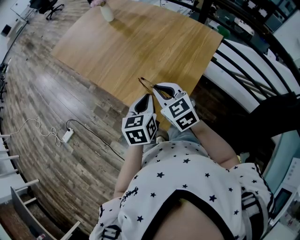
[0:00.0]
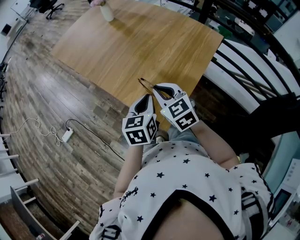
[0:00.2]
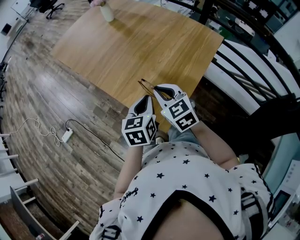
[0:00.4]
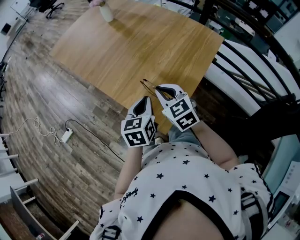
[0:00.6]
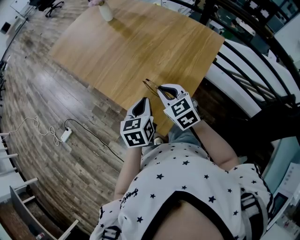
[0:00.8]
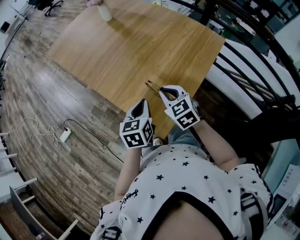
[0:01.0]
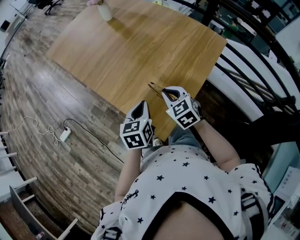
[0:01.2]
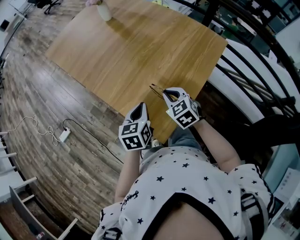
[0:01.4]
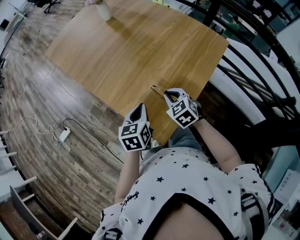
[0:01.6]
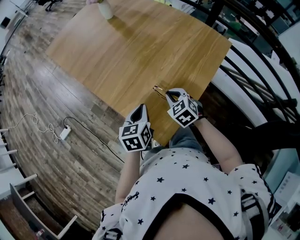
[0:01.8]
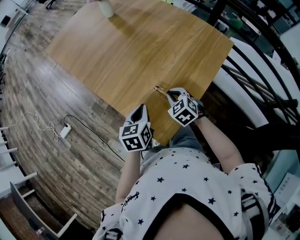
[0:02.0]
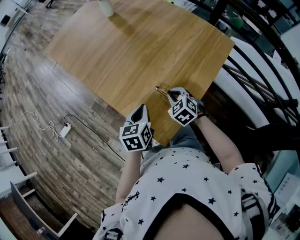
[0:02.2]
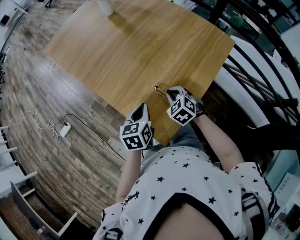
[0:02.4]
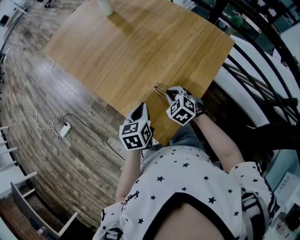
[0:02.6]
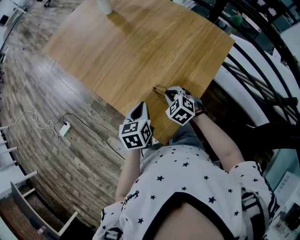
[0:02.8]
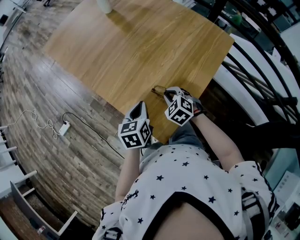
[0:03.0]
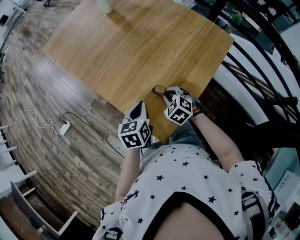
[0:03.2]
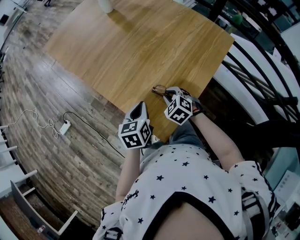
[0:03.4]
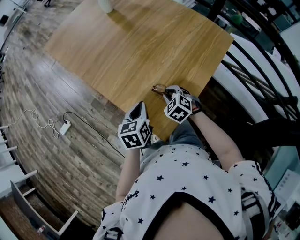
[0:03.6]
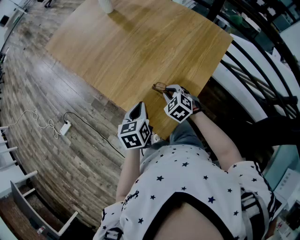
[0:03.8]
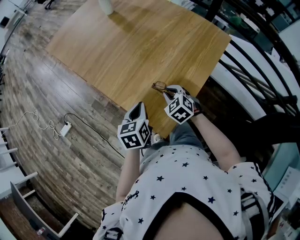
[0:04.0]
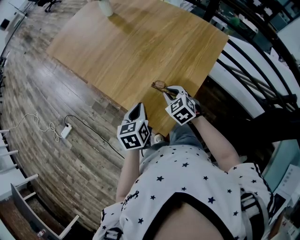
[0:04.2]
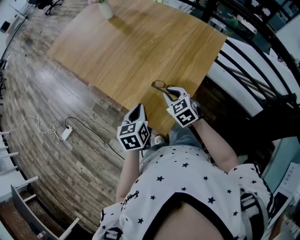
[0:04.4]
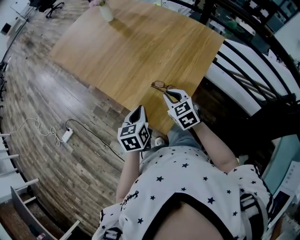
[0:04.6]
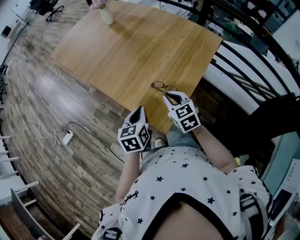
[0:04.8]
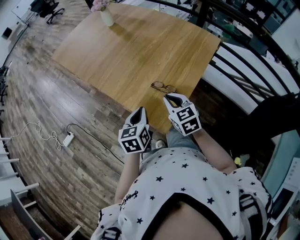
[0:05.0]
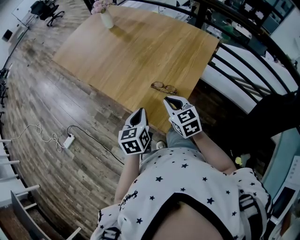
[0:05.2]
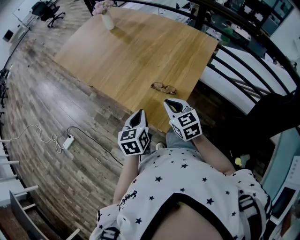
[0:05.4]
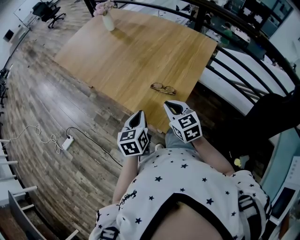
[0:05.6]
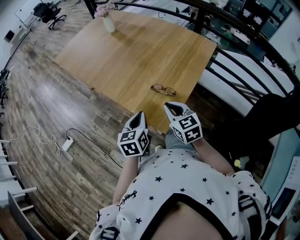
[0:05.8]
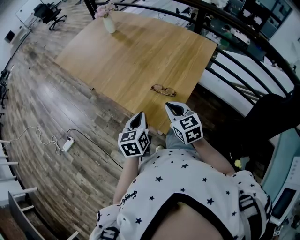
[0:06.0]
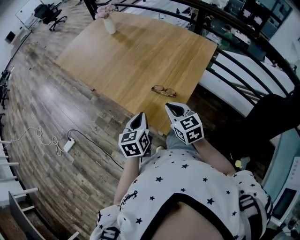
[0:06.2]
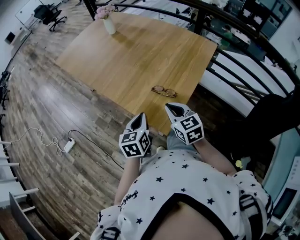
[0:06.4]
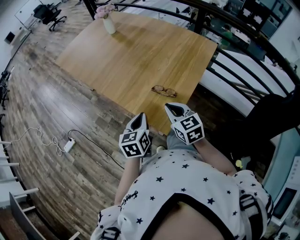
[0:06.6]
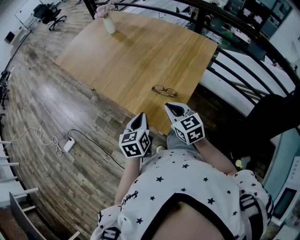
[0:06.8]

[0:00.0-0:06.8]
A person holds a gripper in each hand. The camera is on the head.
0:00.0 to 0:01.4: The left gripper shifts some 5 cm downward. Meanwhile the right gripper heads downward, to the right and forward, covering approximately 10 cm.
0:01.4 to 0:02.8: The right gripper moves downward, roughly 5 cm.
0:02.8 to 0:04.0: The grippers move only a little.
0:04.0 to 0:05.4: The left gripper moves backward, about 5 cm, while the right gripper moves upward and backward, some 15 cm, and changes its angle by approximately 30 degrees.
0:05.4 to 0:06.8: There are only small adjustments of the grippers.

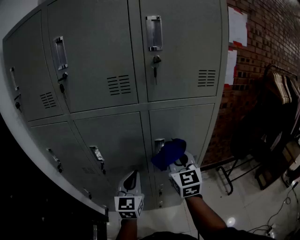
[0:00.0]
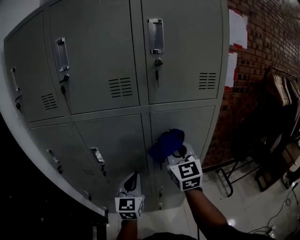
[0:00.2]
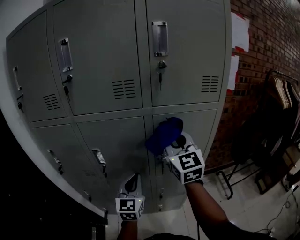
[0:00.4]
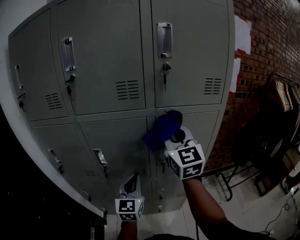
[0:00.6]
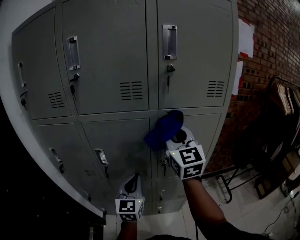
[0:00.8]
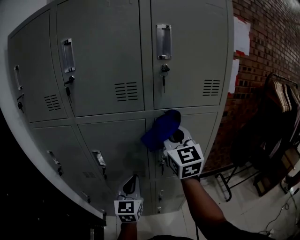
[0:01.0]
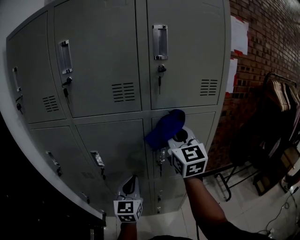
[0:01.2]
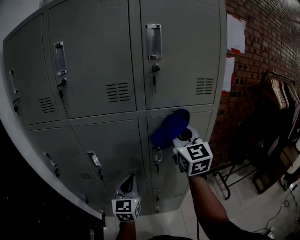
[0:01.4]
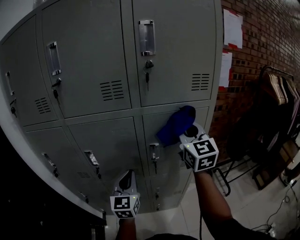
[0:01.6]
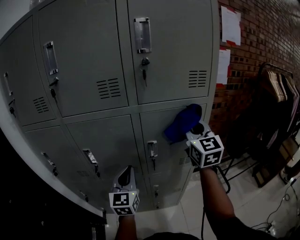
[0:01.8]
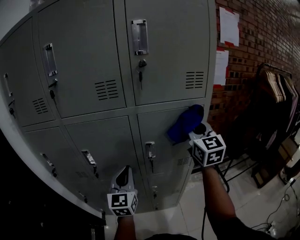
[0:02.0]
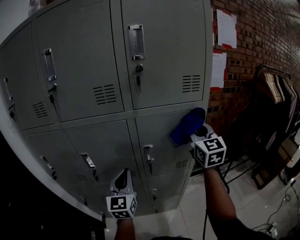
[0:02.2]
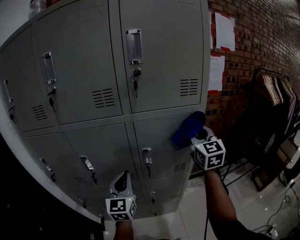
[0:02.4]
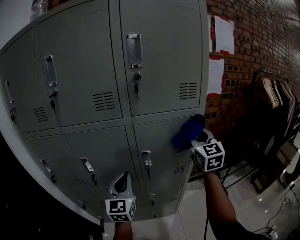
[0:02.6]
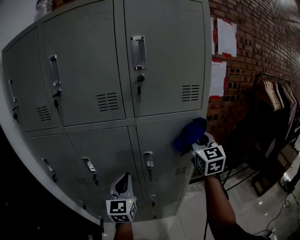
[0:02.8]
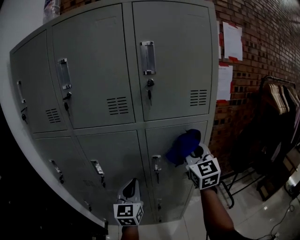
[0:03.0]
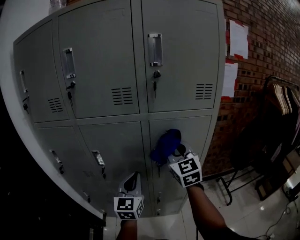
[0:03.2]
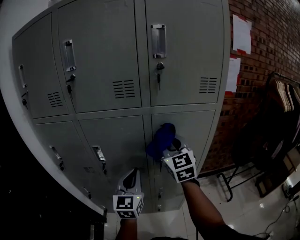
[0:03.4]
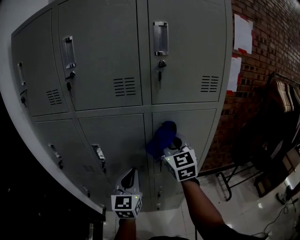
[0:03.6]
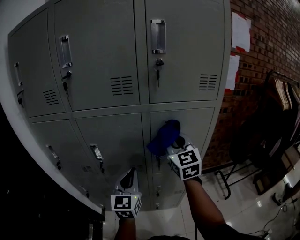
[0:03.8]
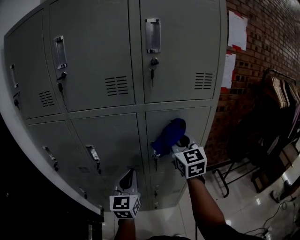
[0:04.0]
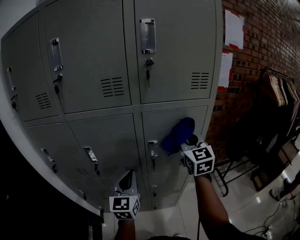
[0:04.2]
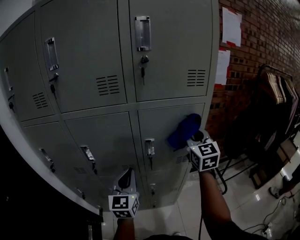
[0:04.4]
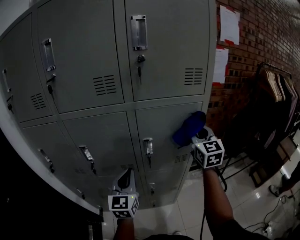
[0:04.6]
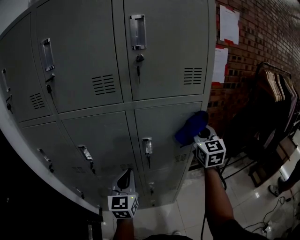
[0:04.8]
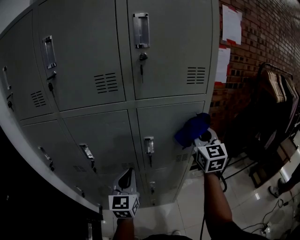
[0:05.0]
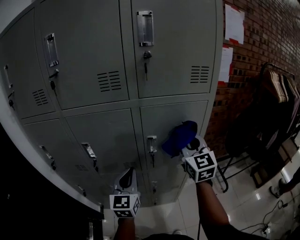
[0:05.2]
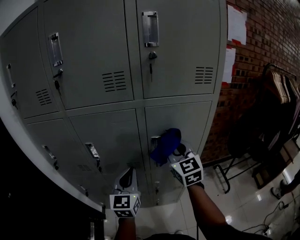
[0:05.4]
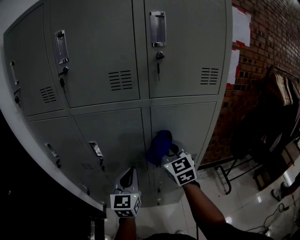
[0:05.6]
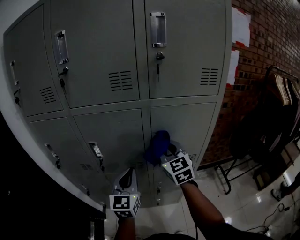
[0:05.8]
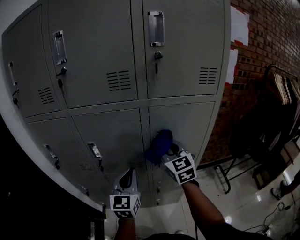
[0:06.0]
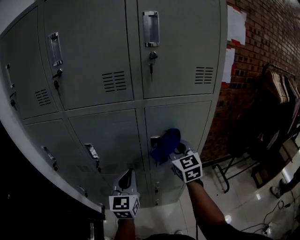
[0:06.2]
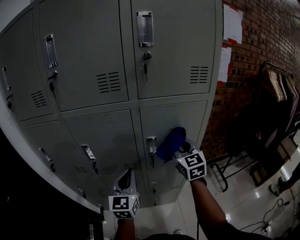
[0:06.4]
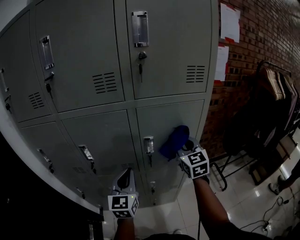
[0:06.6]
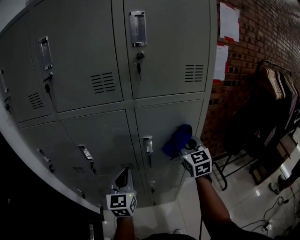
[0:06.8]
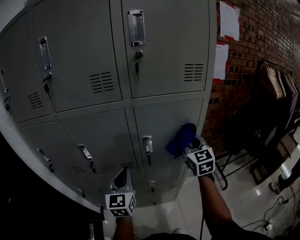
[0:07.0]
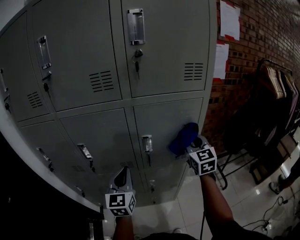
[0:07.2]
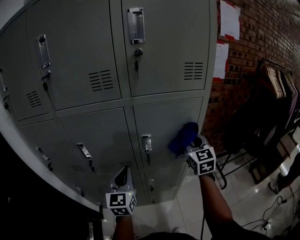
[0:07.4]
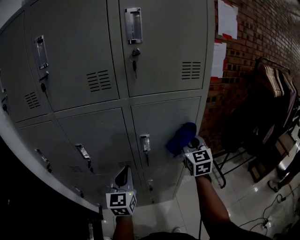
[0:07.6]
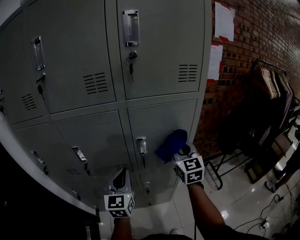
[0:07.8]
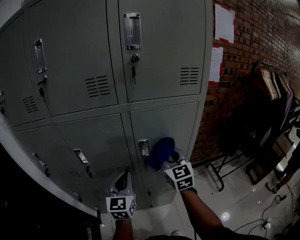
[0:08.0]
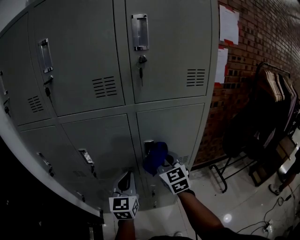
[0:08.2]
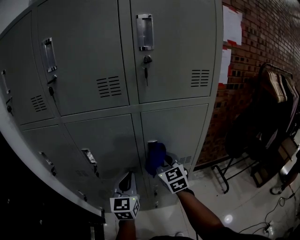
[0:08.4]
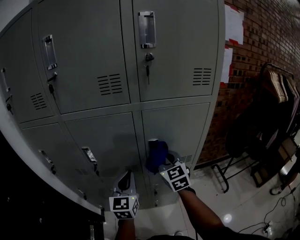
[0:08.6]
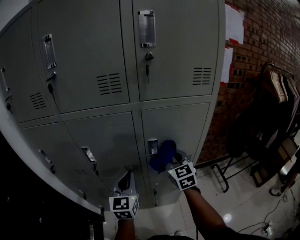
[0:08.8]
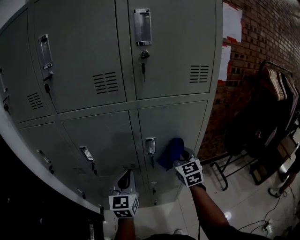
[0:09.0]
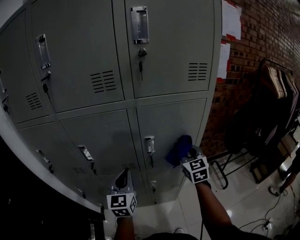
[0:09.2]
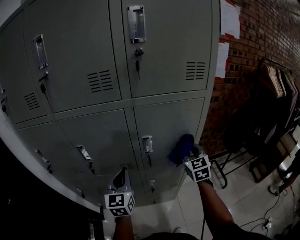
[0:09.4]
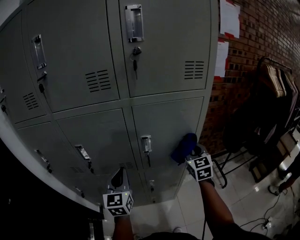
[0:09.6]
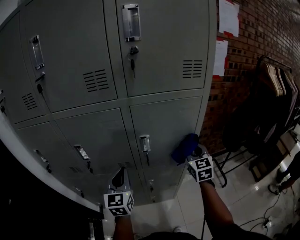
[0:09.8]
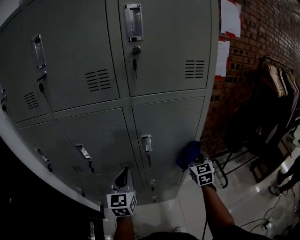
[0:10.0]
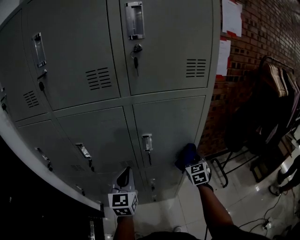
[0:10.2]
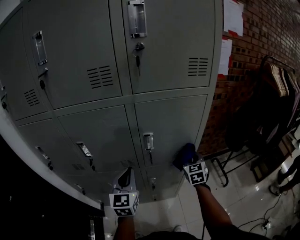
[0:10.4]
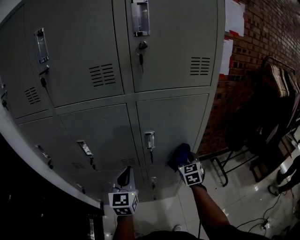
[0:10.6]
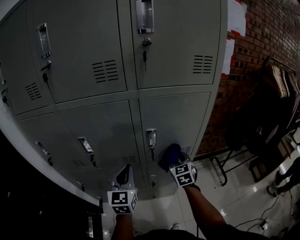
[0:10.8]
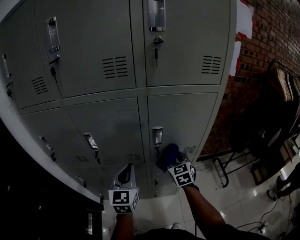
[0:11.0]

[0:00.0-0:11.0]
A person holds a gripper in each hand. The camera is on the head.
0:00.0 to 0:01.6: The right gripper is displaced upward and to the right by some 15 cm.
0:01.6 to 0:03.2: The right gripper moves to the left and downward, roughly 10 cm.
0:03.2 to 0:04.8: The right gripper travels to the right by about 15 cm.
0:04.8 to 0:06.2: The right gripper moves to the left and downward, some 15 cm.
0:06.2 to 0:07.8: The right gripper travels to the right by about 10 cm.
0:07.8 to 0:09.4: The right gripper goes approximately 5 cm downward, and moves approximately 15 cm to the left and comes back.
0:09.4 to 0:11.0: The right gripper is displaced to the left and downward by roughly 15 cm.

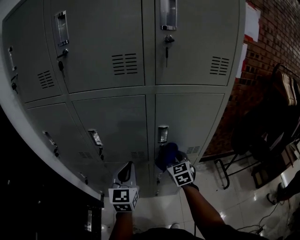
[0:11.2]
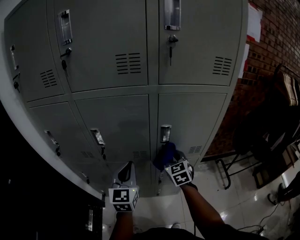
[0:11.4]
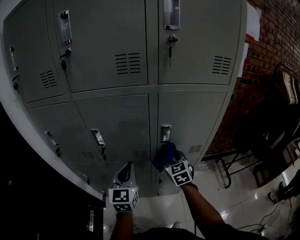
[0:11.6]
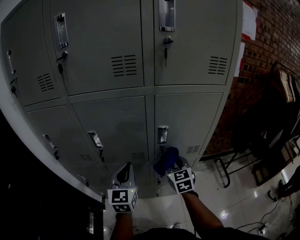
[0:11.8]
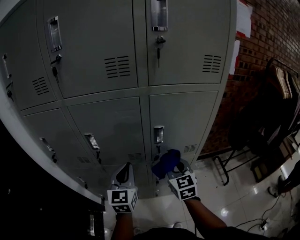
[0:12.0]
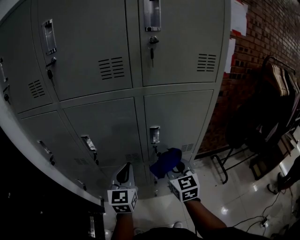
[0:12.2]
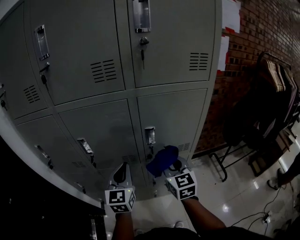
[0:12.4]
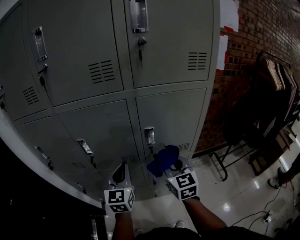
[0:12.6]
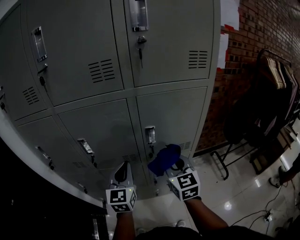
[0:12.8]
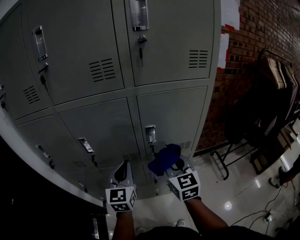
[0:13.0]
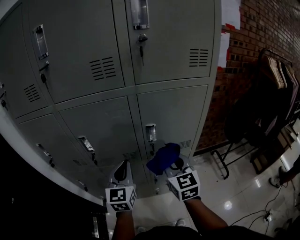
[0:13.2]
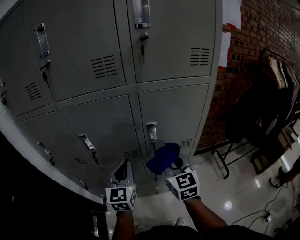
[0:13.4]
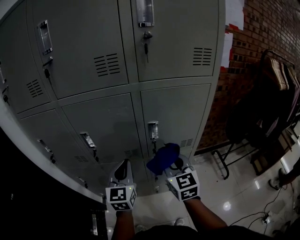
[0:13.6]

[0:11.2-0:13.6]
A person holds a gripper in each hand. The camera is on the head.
0:11.2 to 0:12.4: The right gripper moves upward and backward, approximately 10 cm.
0:12.4 to 0:13.6: There are only small adjustments of the grippers.

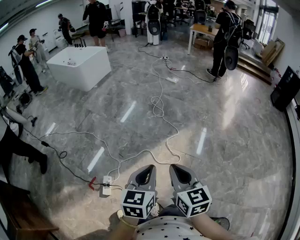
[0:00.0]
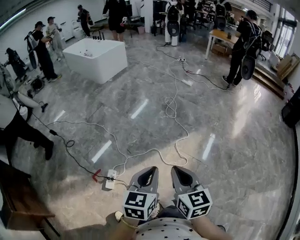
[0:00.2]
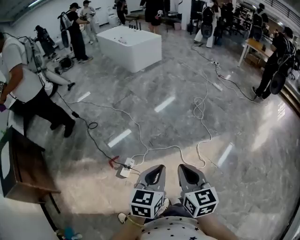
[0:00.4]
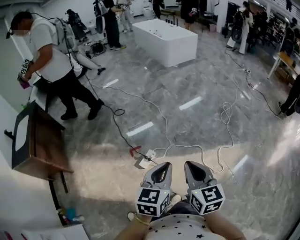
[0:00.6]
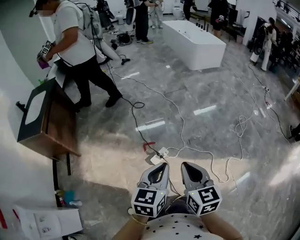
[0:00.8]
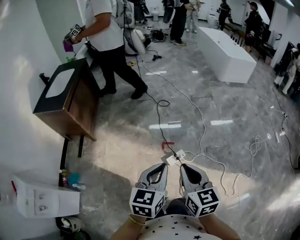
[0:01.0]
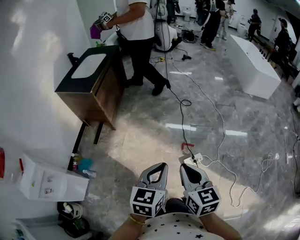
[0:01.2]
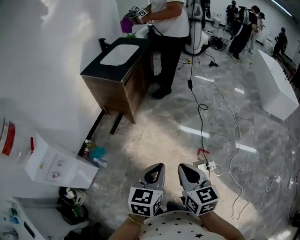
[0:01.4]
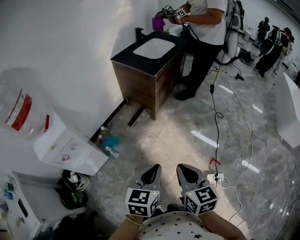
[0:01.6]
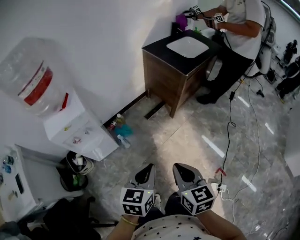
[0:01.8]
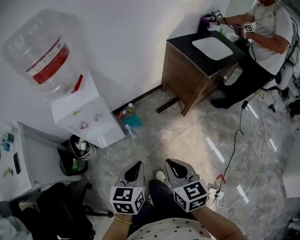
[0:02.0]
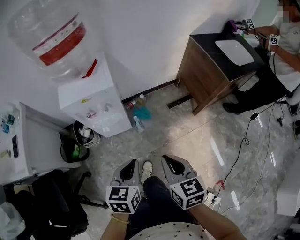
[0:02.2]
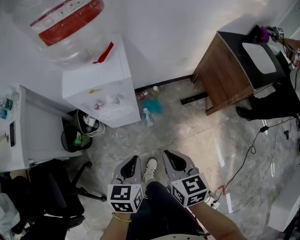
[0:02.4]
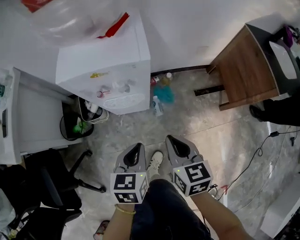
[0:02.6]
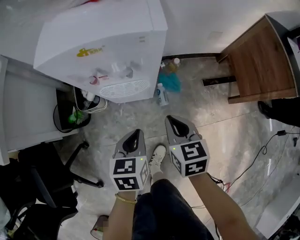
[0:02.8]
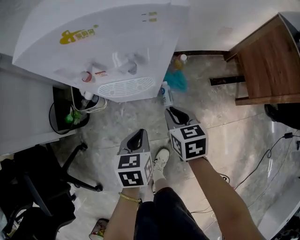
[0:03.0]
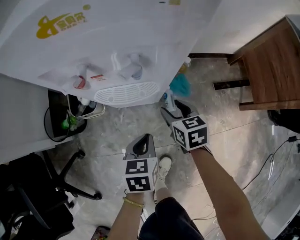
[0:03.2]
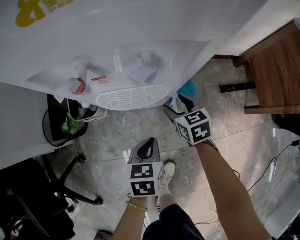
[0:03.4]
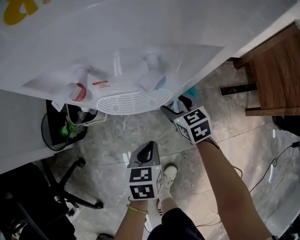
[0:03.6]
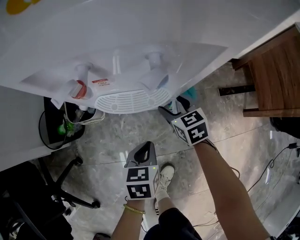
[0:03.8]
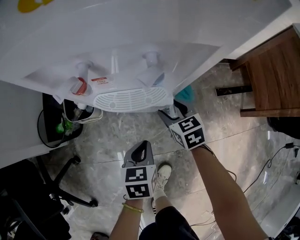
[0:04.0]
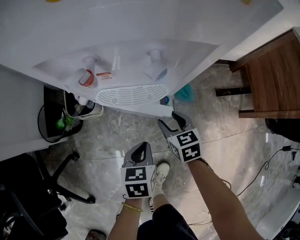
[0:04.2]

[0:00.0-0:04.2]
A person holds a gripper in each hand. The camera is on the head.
0:00.0 to 0:01.4: The pair of grippers is taken some 70 cm. The left gripper turns by some 80 degrees. Meanwhile the right gripper rotates some 80 degrees.
0:01.4 to 0:02.8: The pair of grippers is taken some 60 cm. The left gripper swivels approximately 70 degrees. The right gripper turns by approximately 60 degrees.
0:02.8 to 0:04.2: The grippers both shift downward by about 20 cm. The right gripper opens its fingers.
